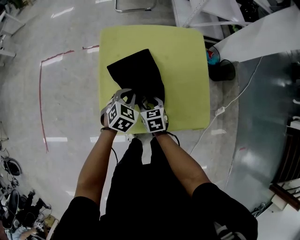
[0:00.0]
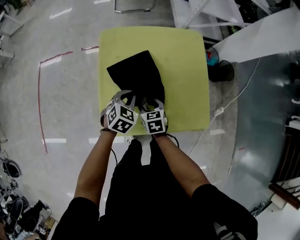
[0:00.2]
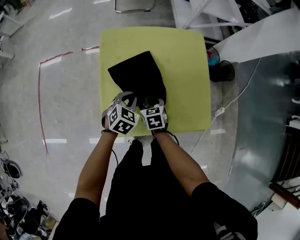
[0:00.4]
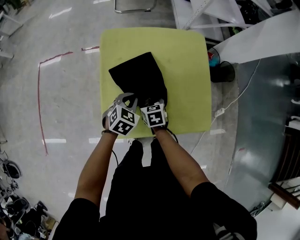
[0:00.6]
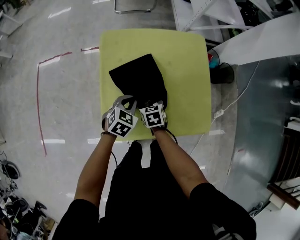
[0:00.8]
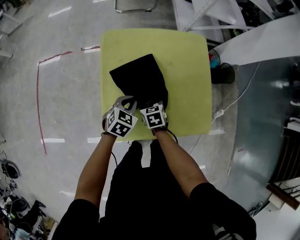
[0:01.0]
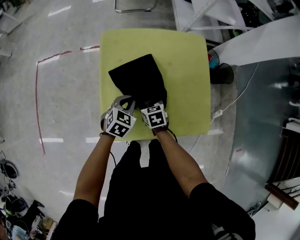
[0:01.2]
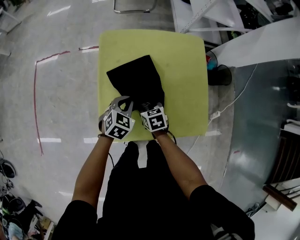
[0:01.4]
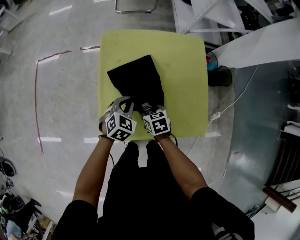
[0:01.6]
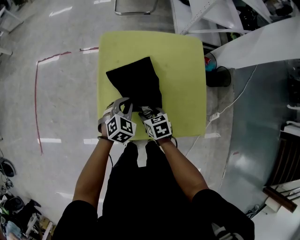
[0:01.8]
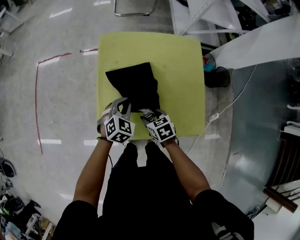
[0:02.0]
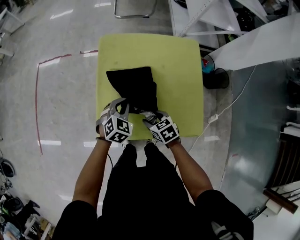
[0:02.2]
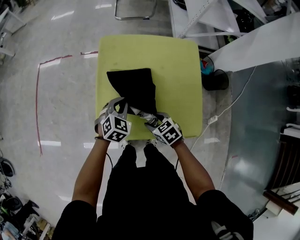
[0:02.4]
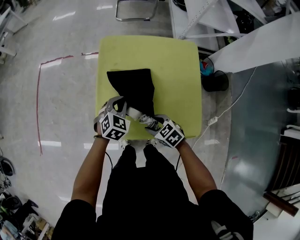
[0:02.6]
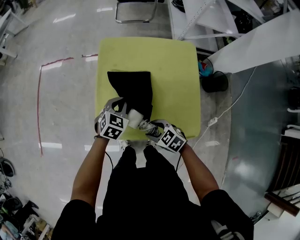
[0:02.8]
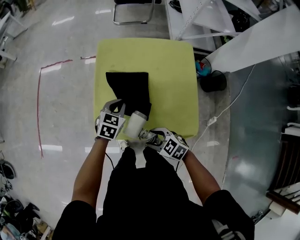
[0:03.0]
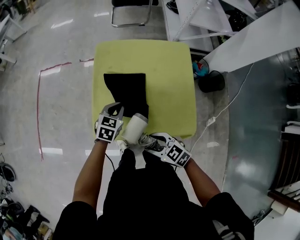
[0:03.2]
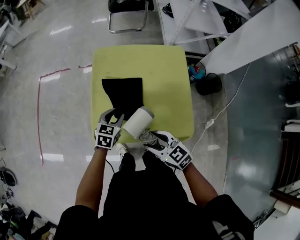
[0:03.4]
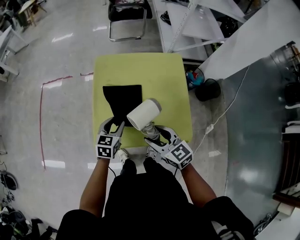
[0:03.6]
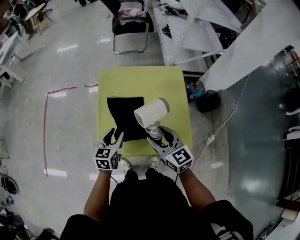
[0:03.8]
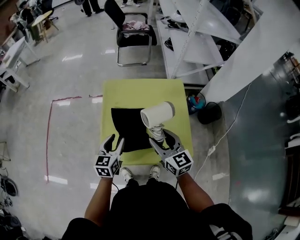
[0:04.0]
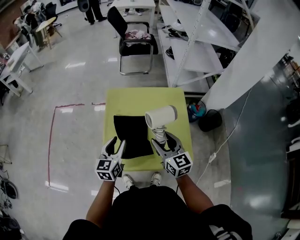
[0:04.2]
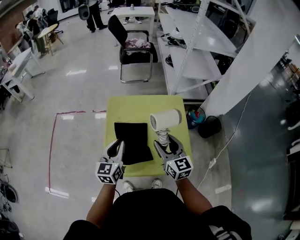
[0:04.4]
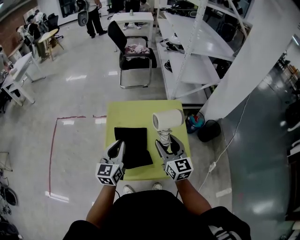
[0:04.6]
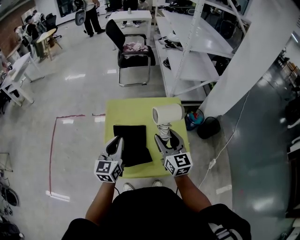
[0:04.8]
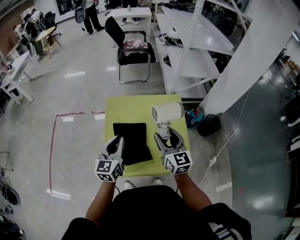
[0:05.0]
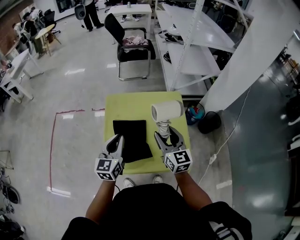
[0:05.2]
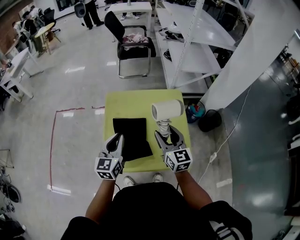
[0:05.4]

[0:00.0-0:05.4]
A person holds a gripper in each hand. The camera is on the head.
0:00.0 to 0:01.4: The grippers move only a little.
0:01.4 to 0:02.8: The right gripper travels backward and upward by approximately 15 cm, and rotates about 40 degrees.
0:02.8 to 0:04.0: The right gripper shifts approximately 20 cm upward, and tilts its fingers some 40 degrees upward. Meanwhile the left gripper shifts approximately 10 cm upward, changes its angle by approximately 30 degrees, and opens up.
0:04.0 to 0:05.4: The right gripper shifts by about 5 cm. The left gripper travels upward by about 10 cm, and closes its fingers.

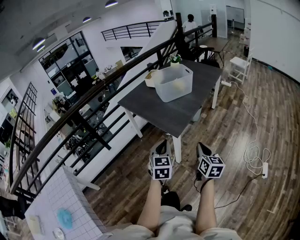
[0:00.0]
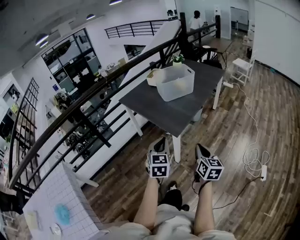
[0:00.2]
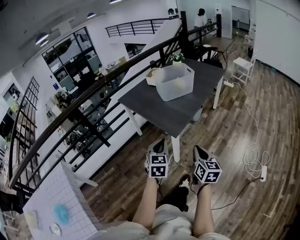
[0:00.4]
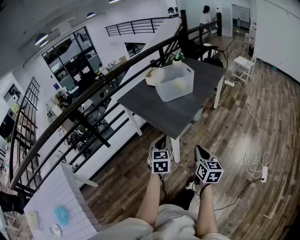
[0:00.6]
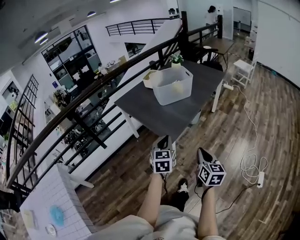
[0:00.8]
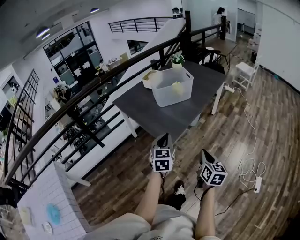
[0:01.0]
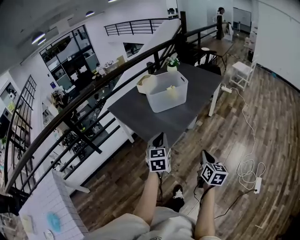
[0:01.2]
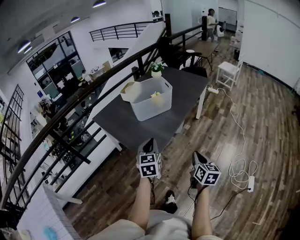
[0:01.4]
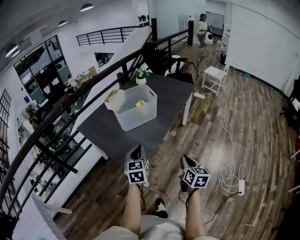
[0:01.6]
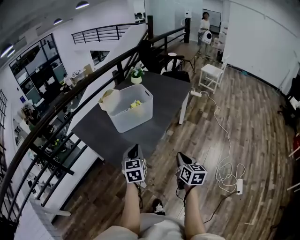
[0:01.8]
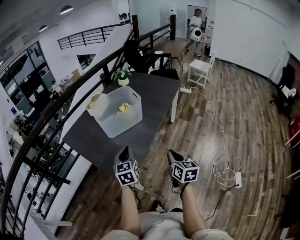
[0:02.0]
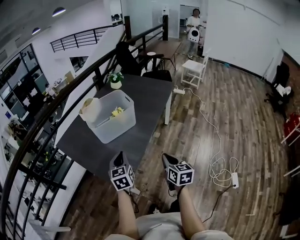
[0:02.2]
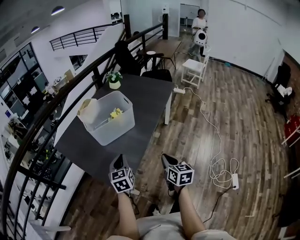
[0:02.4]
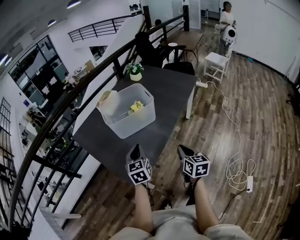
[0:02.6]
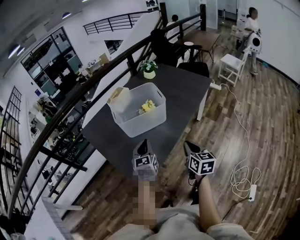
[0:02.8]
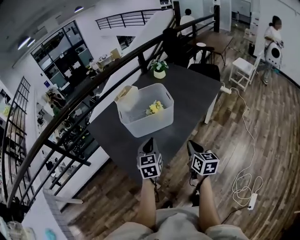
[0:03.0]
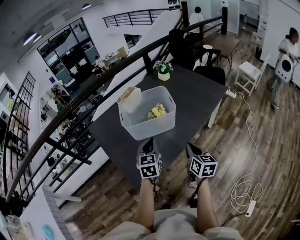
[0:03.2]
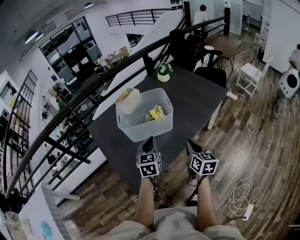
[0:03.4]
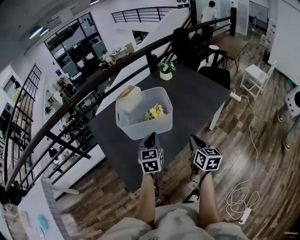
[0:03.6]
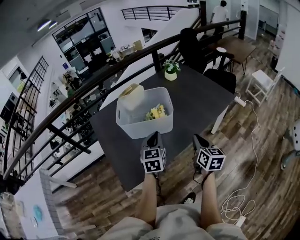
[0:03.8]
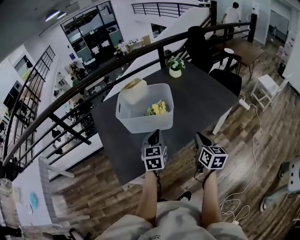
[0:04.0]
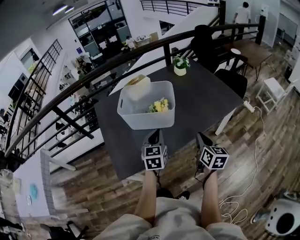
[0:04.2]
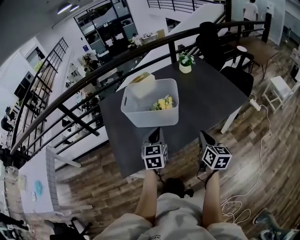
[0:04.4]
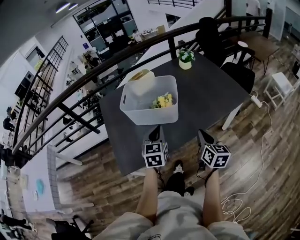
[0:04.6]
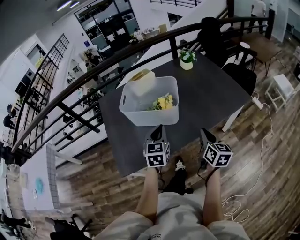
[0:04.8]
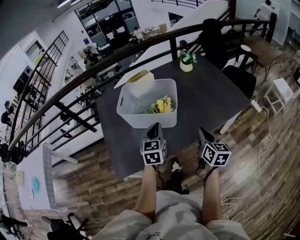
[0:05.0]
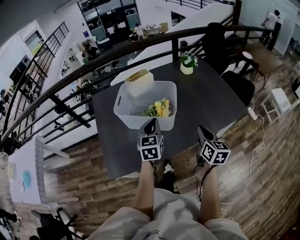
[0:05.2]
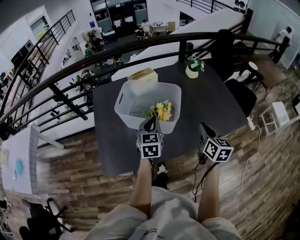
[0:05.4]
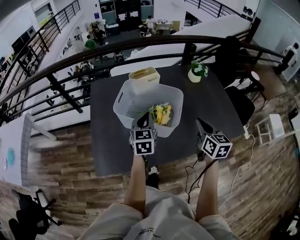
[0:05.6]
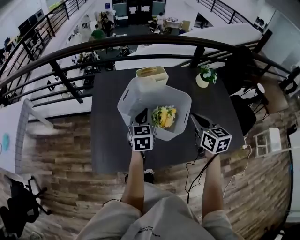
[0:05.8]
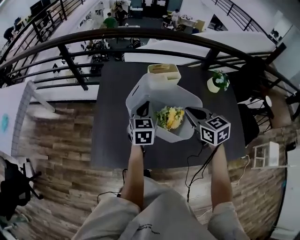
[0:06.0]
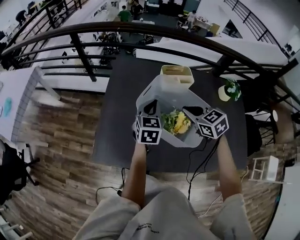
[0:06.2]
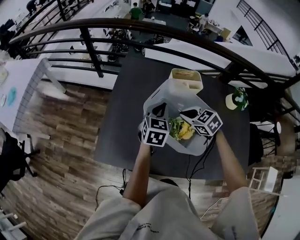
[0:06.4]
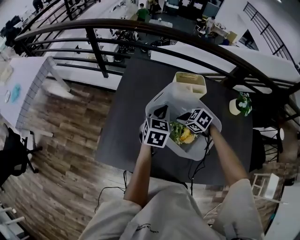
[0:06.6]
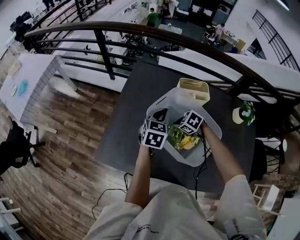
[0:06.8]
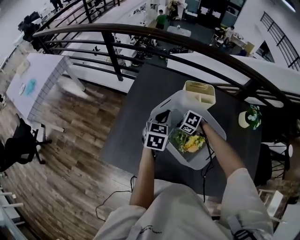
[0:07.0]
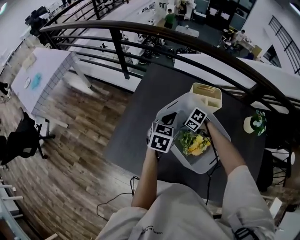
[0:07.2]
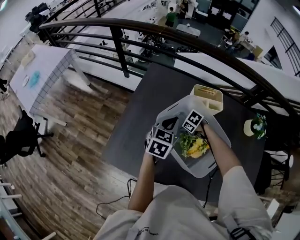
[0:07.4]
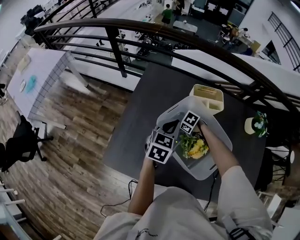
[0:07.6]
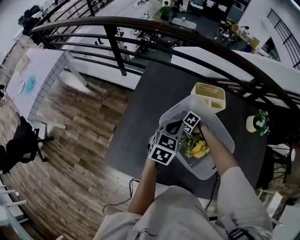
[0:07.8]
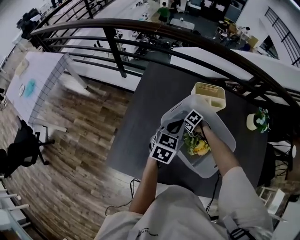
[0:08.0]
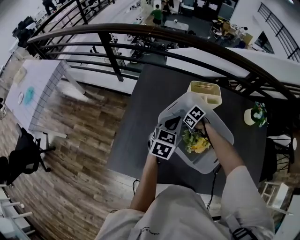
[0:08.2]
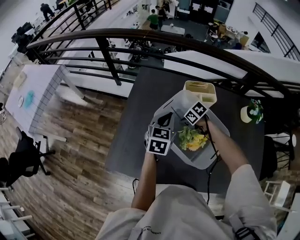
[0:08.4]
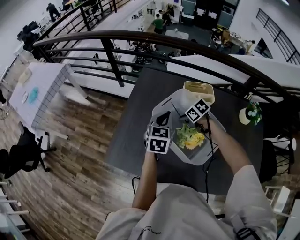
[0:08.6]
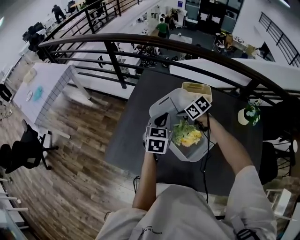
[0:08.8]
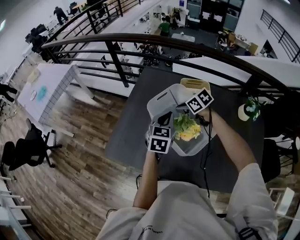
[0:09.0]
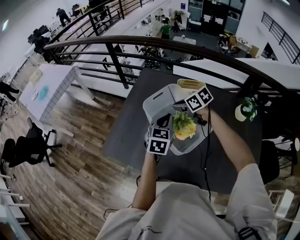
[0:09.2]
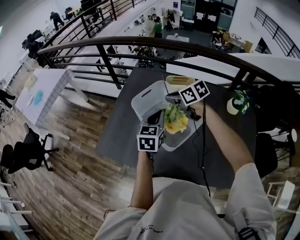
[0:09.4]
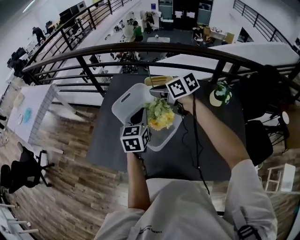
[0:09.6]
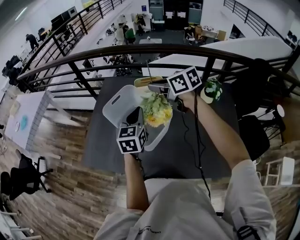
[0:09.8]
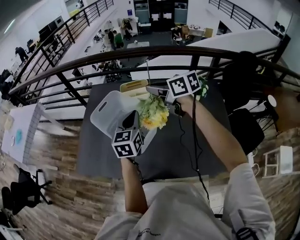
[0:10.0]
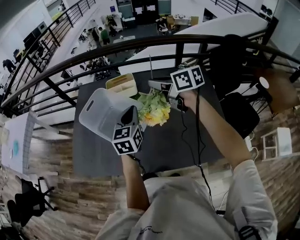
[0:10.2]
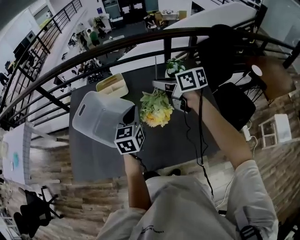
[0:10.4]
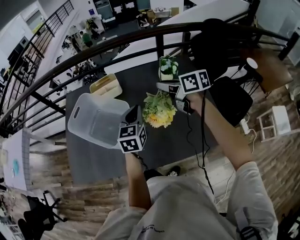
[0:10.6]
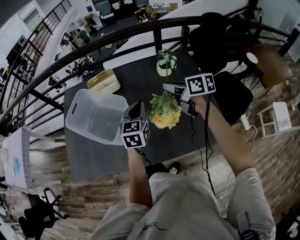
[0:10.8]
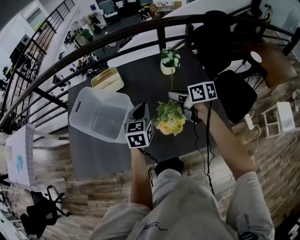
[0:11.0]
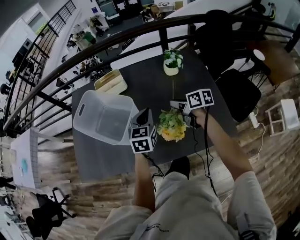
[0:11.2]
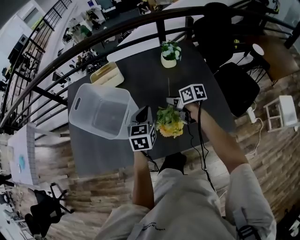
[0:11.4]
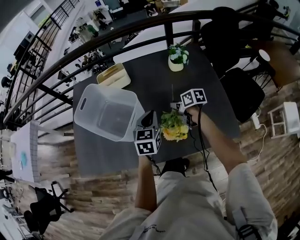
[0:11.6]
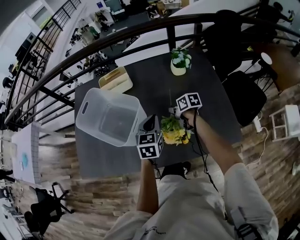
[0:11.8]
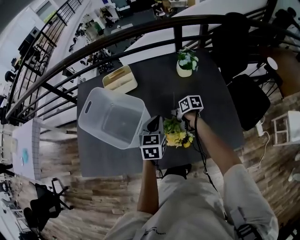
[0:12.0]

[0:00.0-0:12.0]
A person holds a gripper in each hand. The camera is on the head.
0:00.0 to 0:01.6: Both grippers travel together forward and to the right, some 25 cm.
0:01.6 to 0:03.0: The grippers both shift forward by approximately 20 cm.
0:03.0 to 0:04.4: The left gripper heads to the right, covering roughly 10 cm. The right gripper moves to the right and forward, some 15 cm.
0:04.4 to 0:06.0: The left gripper changes place by about 25 cm, and turns by approximately 20 degrees; the right gripper ends up roughly 35 cm from where it was, and changes its angle by approximately 60 degrees.
0:06.0 to 0:07.6: The right gripper shifts roughly 30 cm downward, points its fingers about 40 degrees further downward, and opens up, while the left gripper shifts by some 5 cm.
0:07.6 to 0:09.0: The right gripper moves upward, about 20 cm, swivels some 30 degrees, and closes up. Meanwhile the left gripper changes place by roughly 10 cm.
0:09.0 to 0:10.4: The left gripper travels to the right and backward by roughly 25 cm, while the right gripper is displaced to the right, backward and upward by roughly 35 cm, and turns by approximately 50 degrees.
0:10.4 to 0:12.0: The left gripper heads downward, covering approximately 10 cm. Meanwhile the right gripper heads downward, covering some 30 cm, and rotates some 40 degrees.

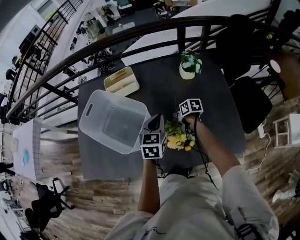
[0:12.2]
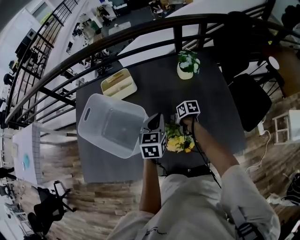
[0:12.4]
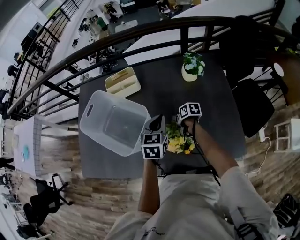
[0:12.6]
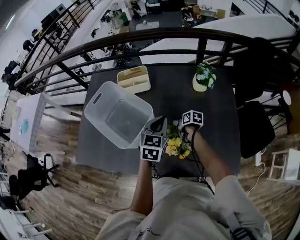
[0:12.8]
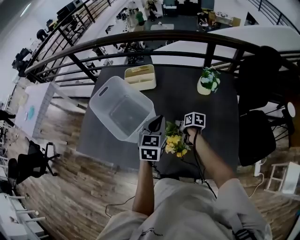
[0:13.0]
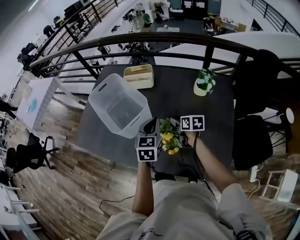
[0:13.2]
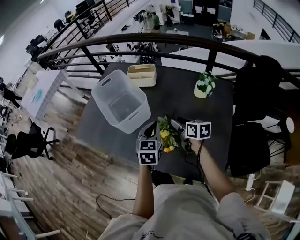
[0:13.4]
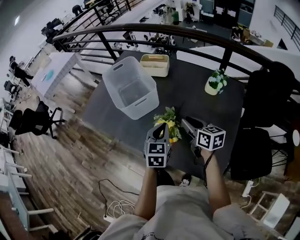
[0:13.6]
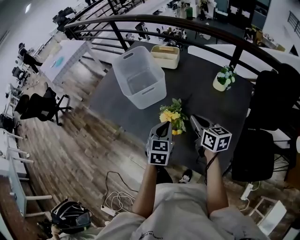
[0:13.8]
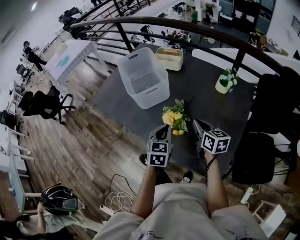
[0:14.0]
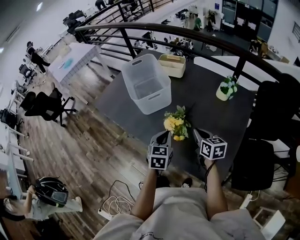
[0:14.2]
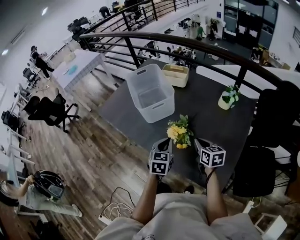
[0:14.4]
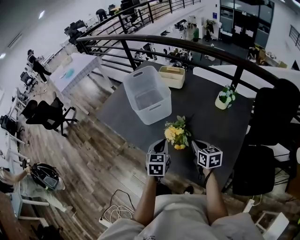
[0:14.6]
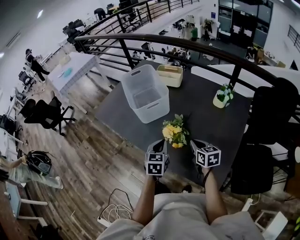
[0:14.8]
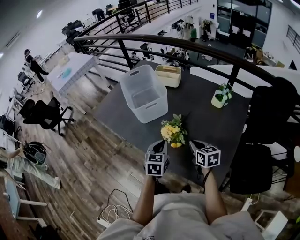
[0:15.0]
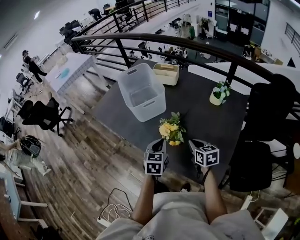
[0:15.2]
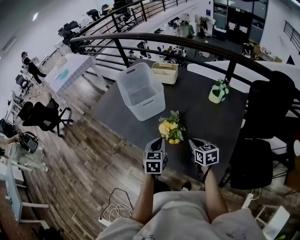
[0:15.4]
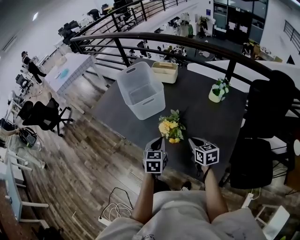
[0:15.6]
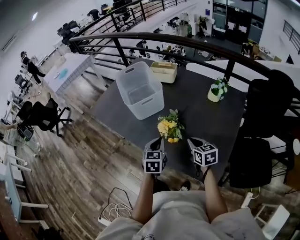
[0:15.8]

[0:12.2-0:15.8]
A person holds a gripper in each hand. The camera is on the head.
0:12.2 to 0:14.0: The left gripper goes some 15 cm backward, and rotates some 40 degrees; the right gripper moves upward and backward, roughly 20 cm, twists approximately 40 degrees counterclockwise, seen from behind, and opens and closes again.
0:14.0 to 0:15.8: The right gripper travels downward by approximately 5 cm.

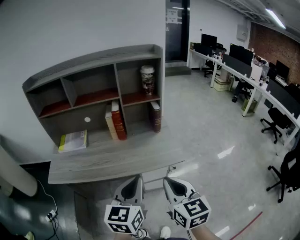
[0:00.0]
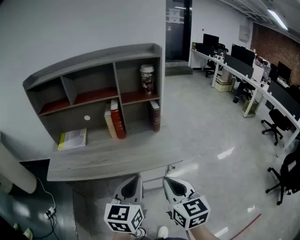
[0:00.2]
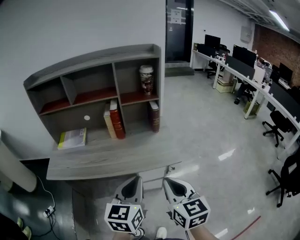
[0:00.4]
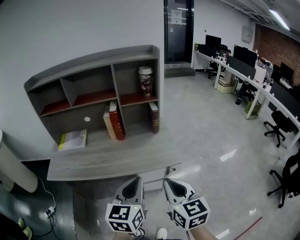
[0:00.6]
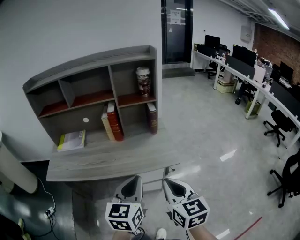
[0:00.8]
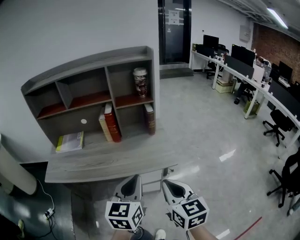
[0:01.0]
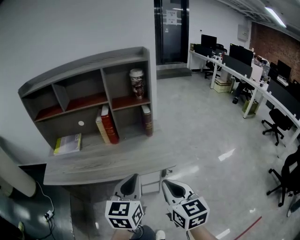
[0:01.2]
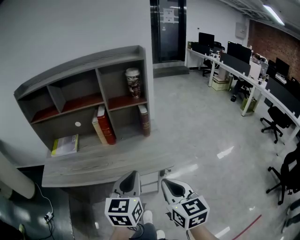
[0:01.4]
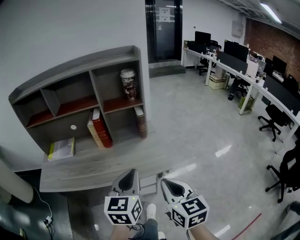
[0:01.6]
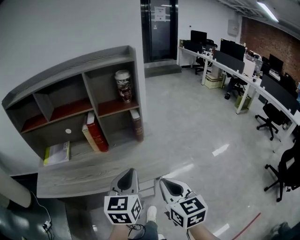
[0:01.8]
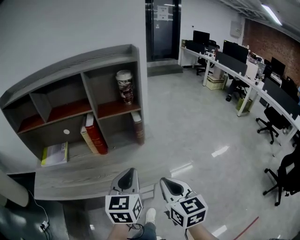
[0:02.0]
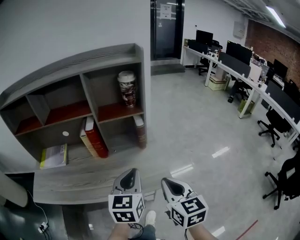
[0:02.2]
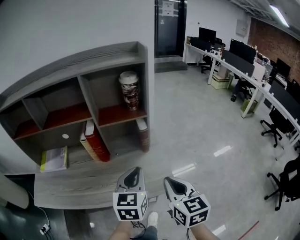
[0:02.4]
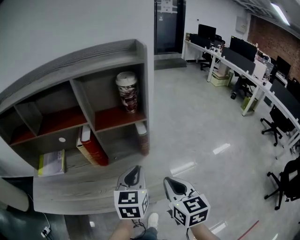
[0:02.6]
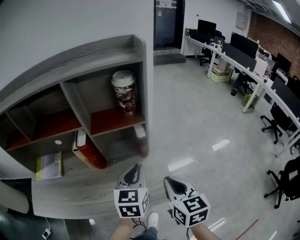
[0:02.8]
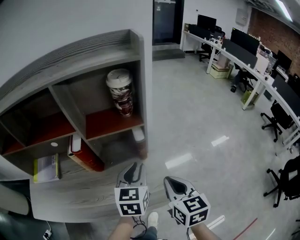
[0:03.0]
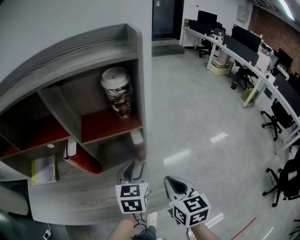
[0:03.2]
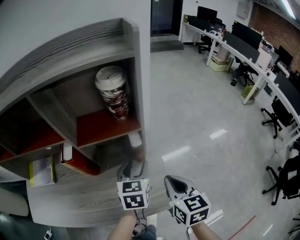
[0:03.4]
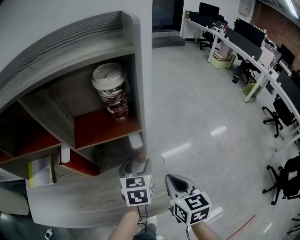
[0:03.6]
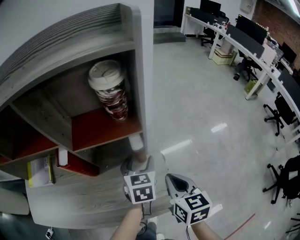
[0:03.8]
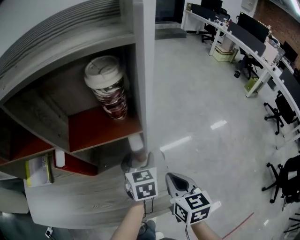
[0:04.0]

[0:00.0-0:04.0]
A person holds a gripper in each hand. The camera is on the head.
0:00.0 to 0:01.4: The right gripper is displaced to the right by some 10 cm. Meanwhile the left gripper moves to the right and forward, about 10 cm.
0:01.4 to 0:02.6: Both grippers move forward, roughly 25 cm.
0:02.6 to 0:04.0: The grippers both shift forward and downward by some 20 cm. The left gripper opens.
